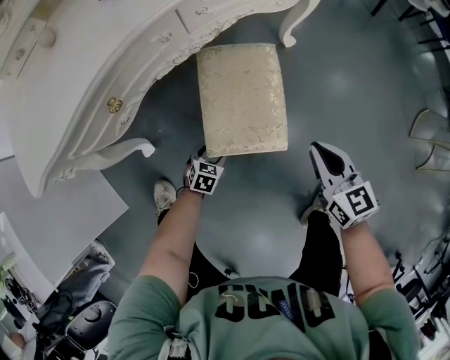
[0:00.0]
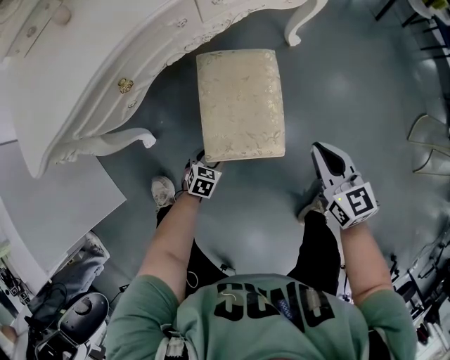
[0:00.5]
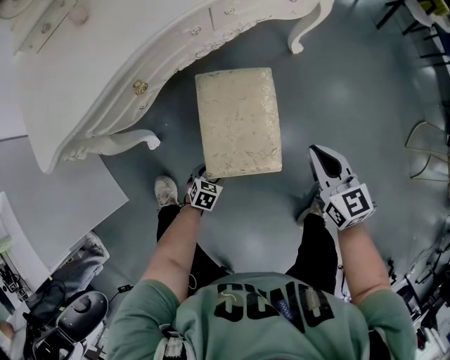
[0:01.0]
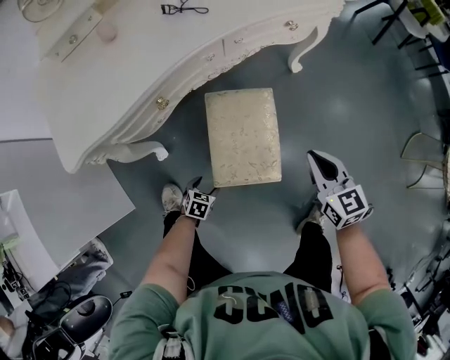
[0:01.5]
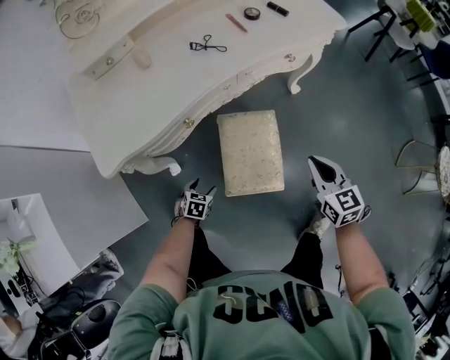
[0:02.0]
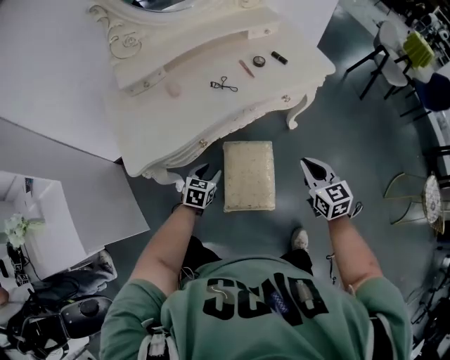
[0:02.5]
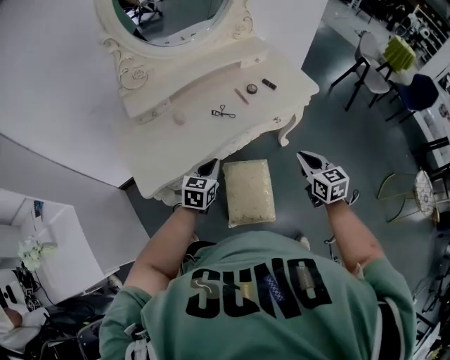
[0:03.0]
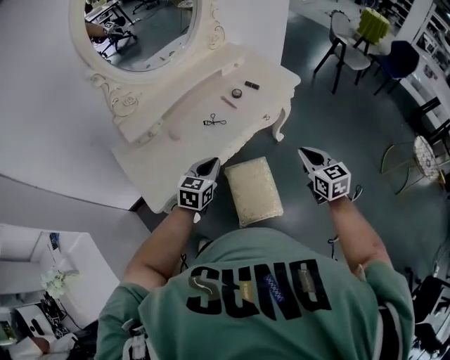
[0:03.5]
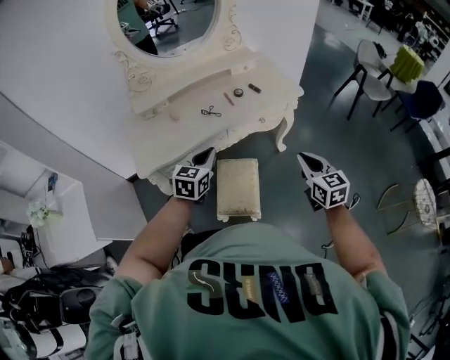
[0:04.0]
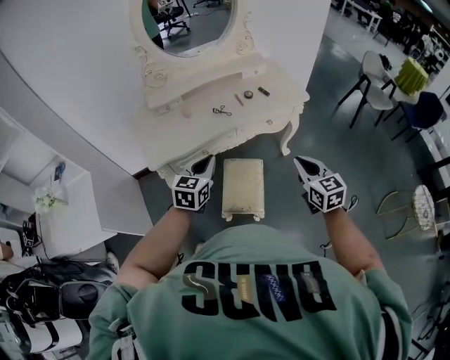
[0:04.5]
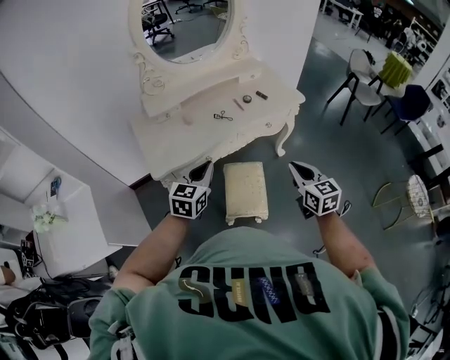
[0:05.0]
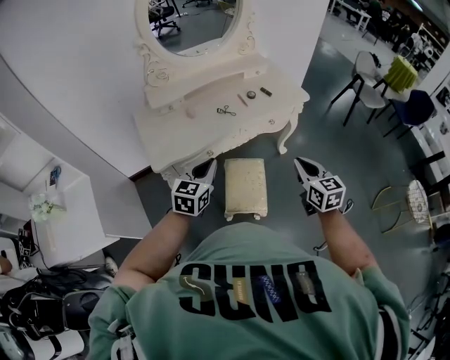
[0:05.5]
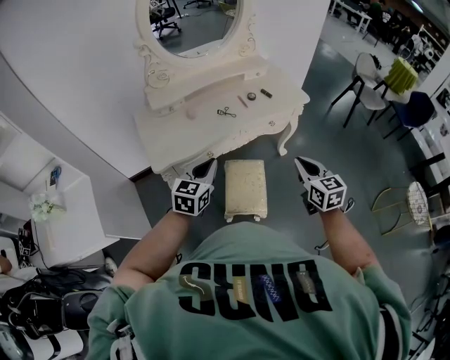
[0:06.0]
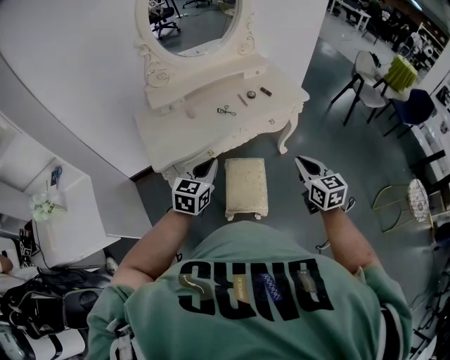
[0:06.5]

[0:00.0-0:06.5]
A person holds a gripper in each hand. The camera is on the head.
0:00.0 to 0:02.0: The right gripper is displaced upward and to the left by approximately 15 cm, while the left gripper travels to the left, upward and backward by about 20 cm.
0:02.0 to 0:04.5: The left gripper moves upward, approximately 60 cm, tilts its fingers approximately 40 degrees upward, and closes; the right gripper moves upward, roughly 30 cm.
0:04.5 to 0:06.5: The left gripper shifts by some 5 cm. The right gripper ends up approximately 5 cm from where it was.

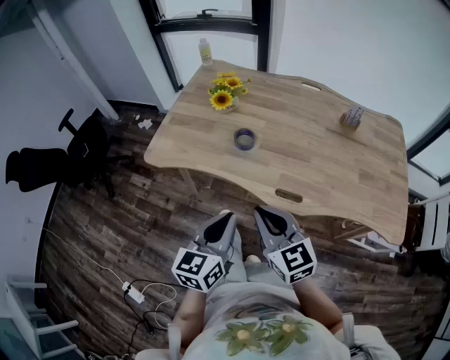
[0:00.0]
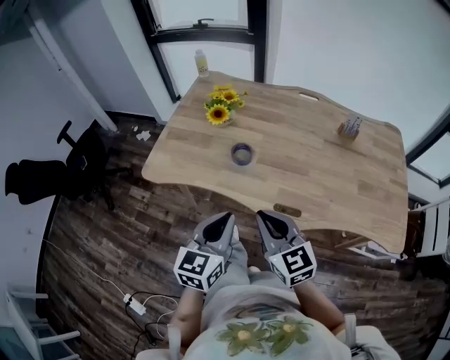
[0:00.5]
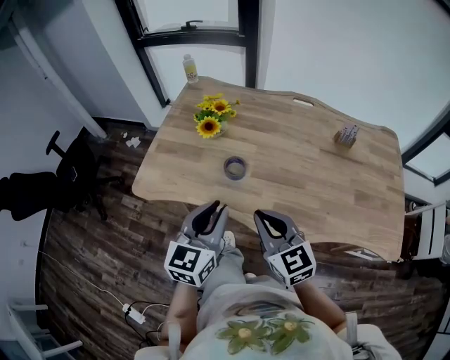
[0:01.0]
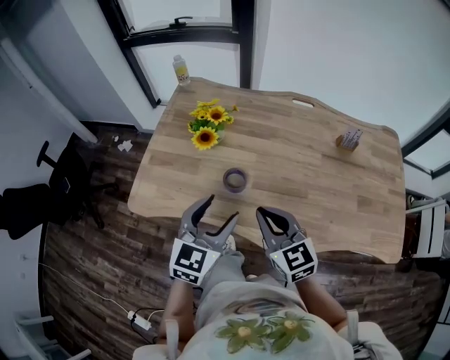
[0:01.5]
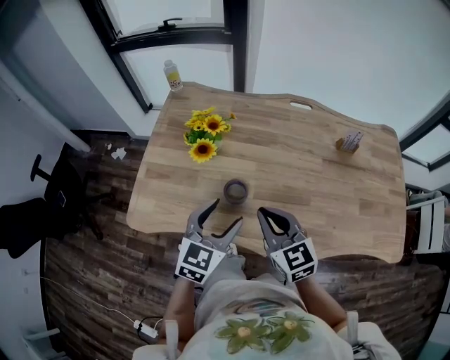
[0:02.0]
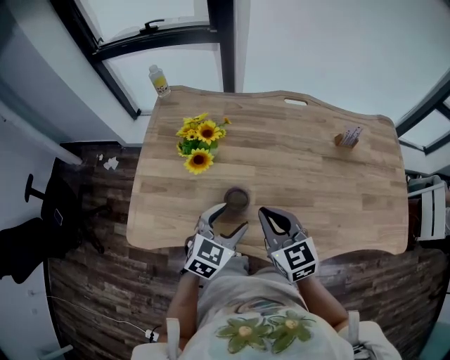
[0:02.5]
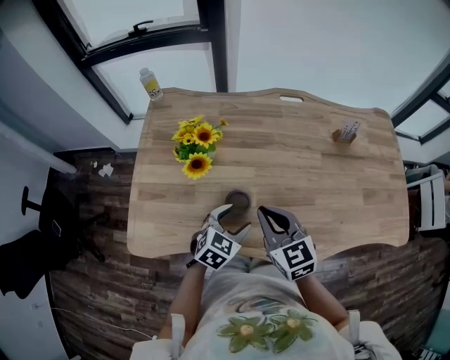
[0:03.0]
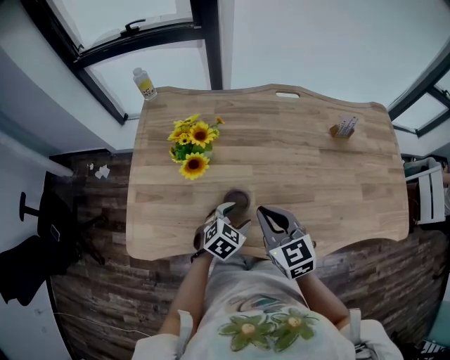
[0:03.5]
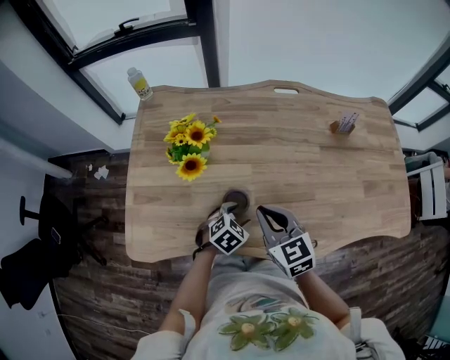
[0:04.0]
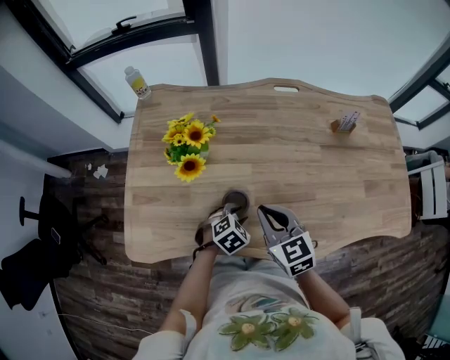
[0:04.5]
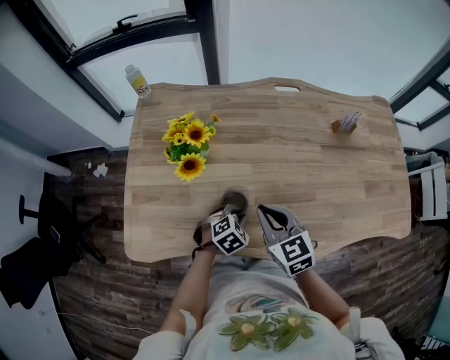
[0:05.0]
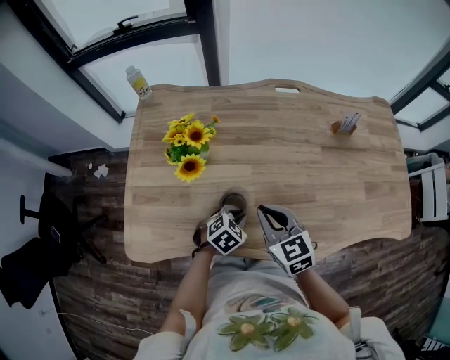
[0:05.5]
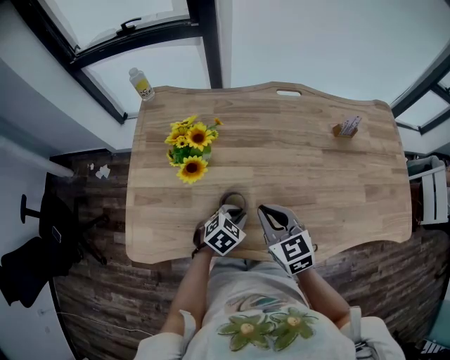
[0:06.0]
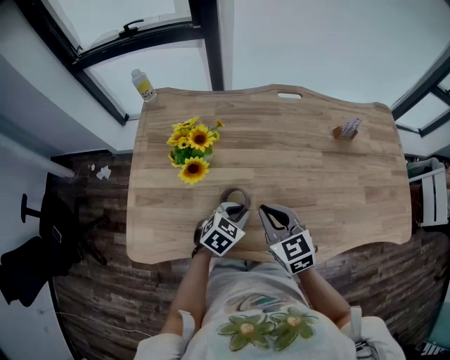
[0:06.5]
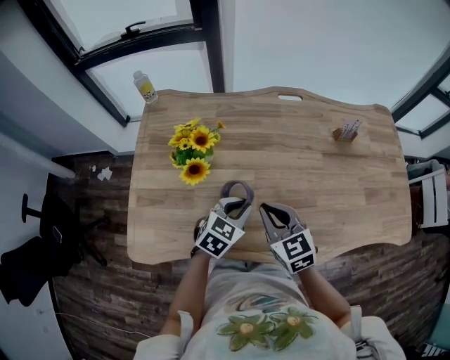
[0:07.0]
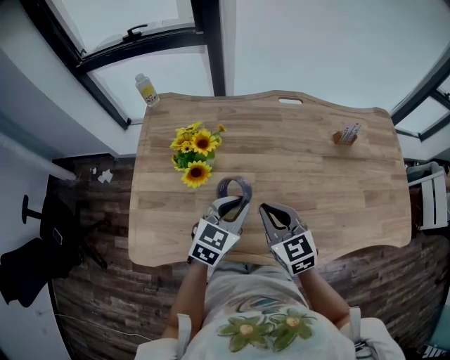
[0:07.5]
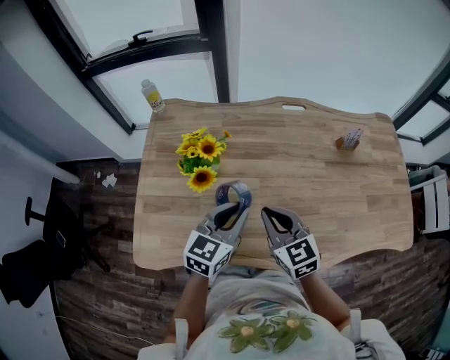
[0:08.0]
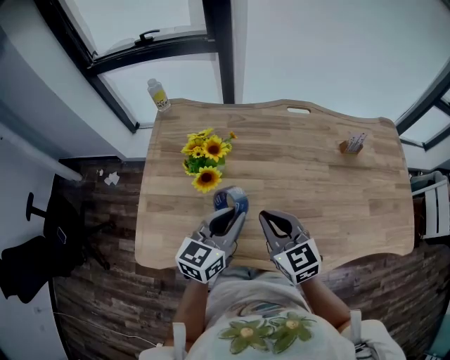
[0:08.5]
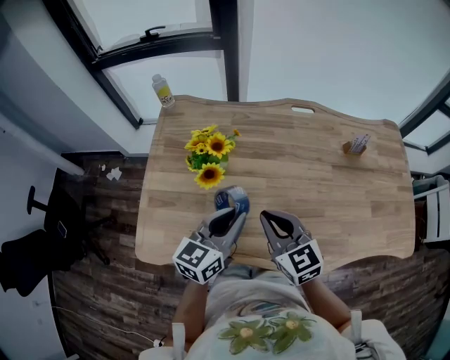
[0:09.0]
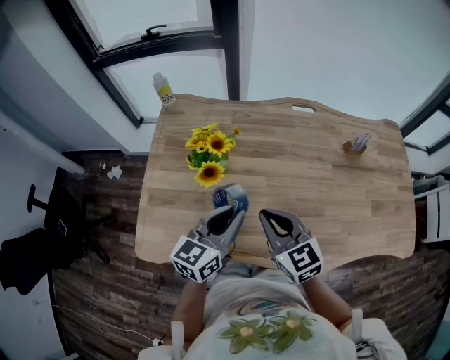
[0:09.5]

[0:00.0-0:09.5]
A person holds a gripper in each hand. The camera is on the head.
0:00.0 to 0:02.0: The two grippers go some 25 cm forward. The left gripper changes its angle by approximately 30 degrees, and opens its fingers.
0:02.0 to 0:04.0: The left gripper travels downward by roughly 25 cm, and angles its fingers downward, by some 30 degrees; the right gripper heads downward and forward, covering some 10 cm.
0:04.0 to 0:05.5: The left gripper closes its fingers.
0:05.5 to 0:07.5: The left gripper is displaced upward by roughly 15 cm, and changes its angle by about 30 degrees.
0:07.5 to 0:09.5: The left gripper moves upward and to the left, about 10 cm, and turns by approximately 30 degrees, while the right gripper ends up some 5 cm from where it was.

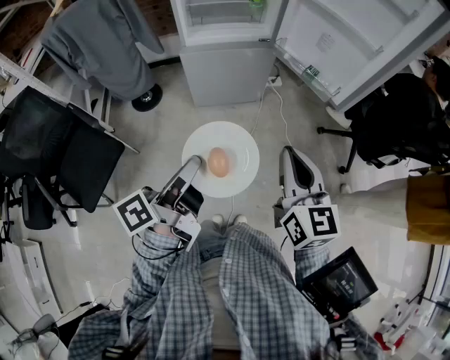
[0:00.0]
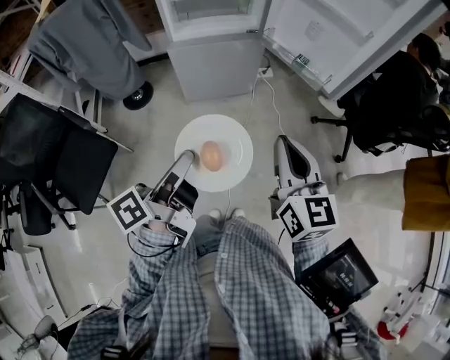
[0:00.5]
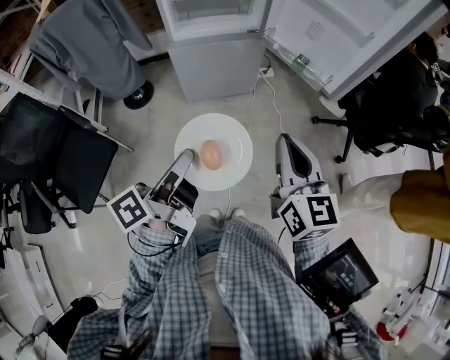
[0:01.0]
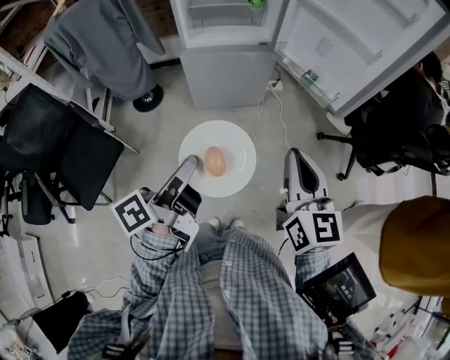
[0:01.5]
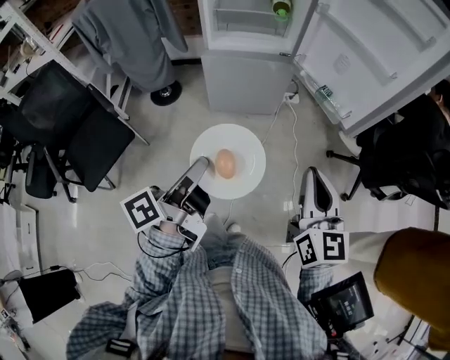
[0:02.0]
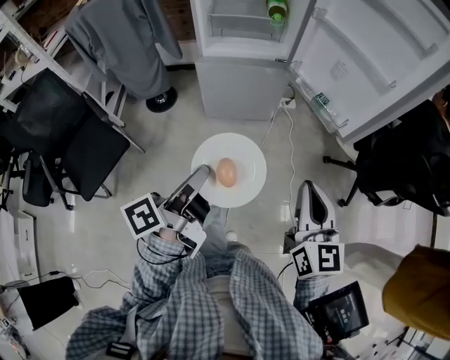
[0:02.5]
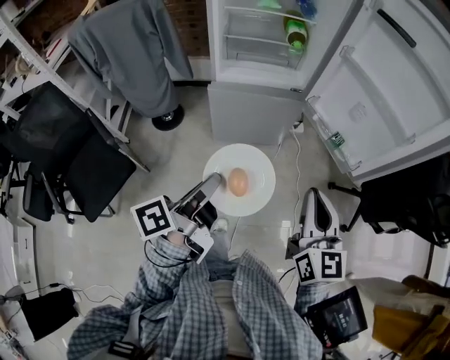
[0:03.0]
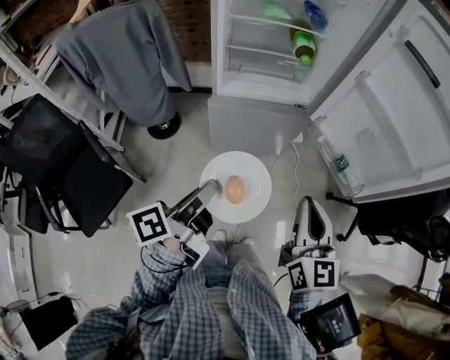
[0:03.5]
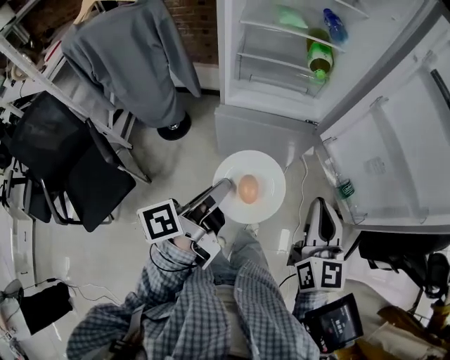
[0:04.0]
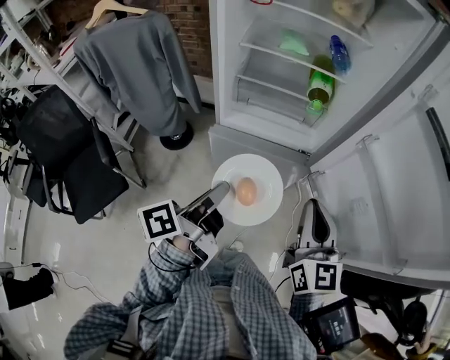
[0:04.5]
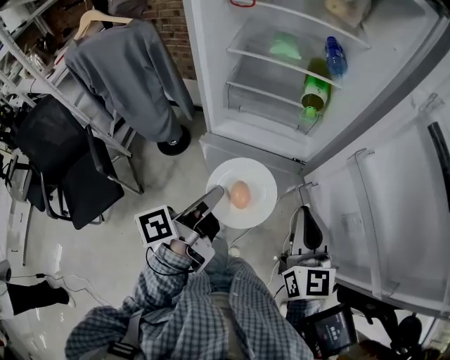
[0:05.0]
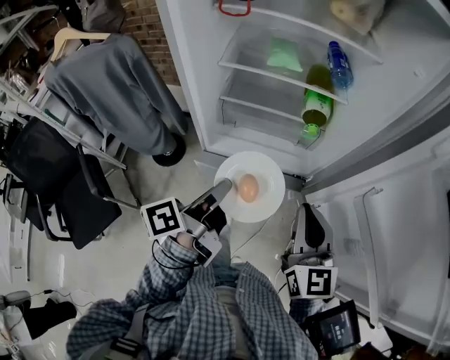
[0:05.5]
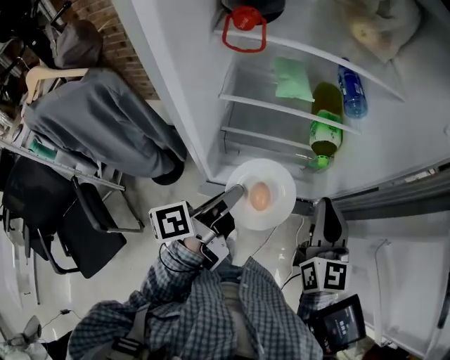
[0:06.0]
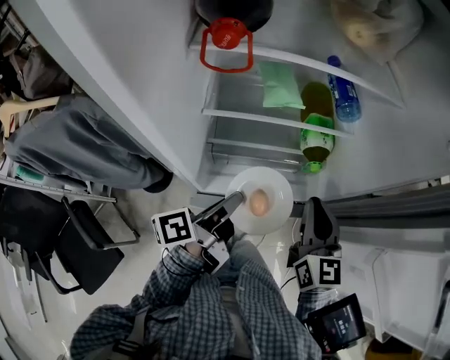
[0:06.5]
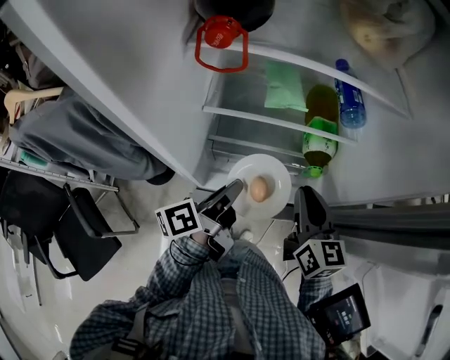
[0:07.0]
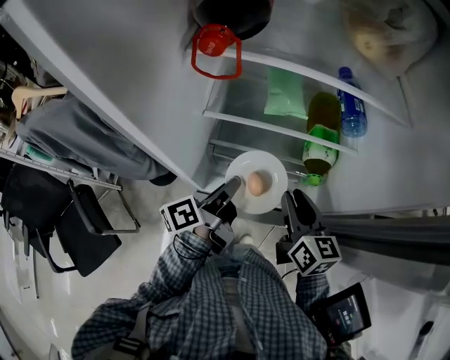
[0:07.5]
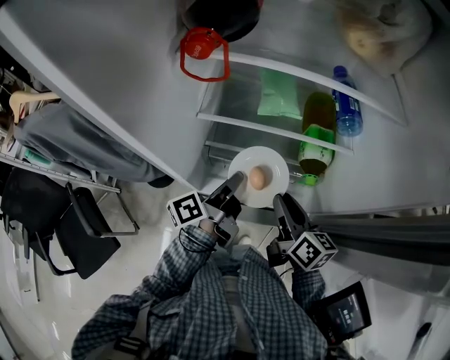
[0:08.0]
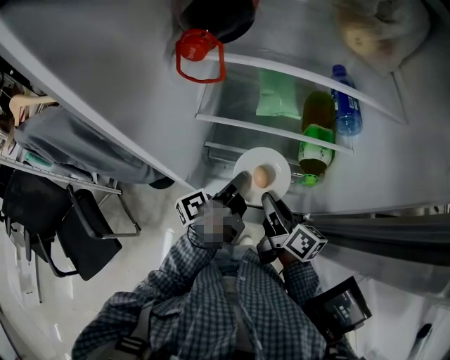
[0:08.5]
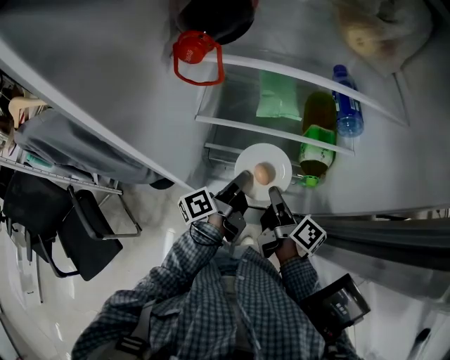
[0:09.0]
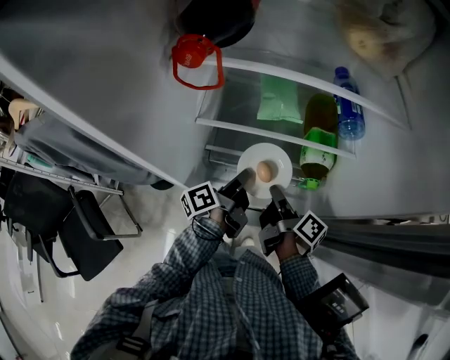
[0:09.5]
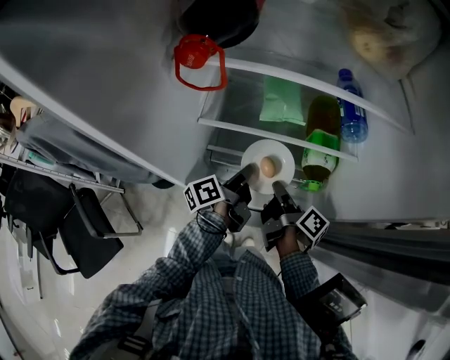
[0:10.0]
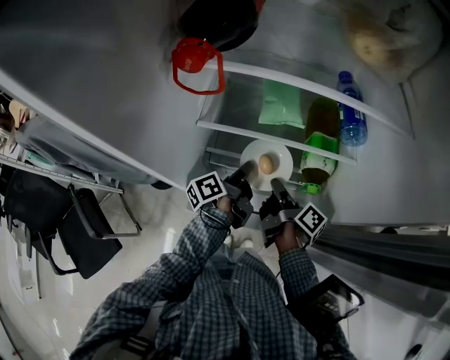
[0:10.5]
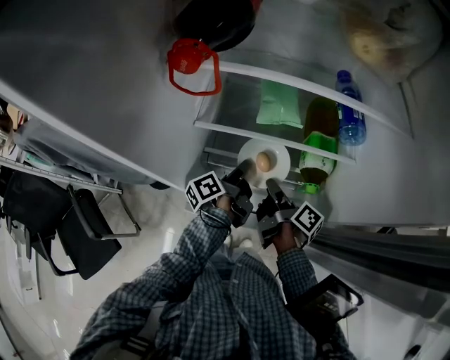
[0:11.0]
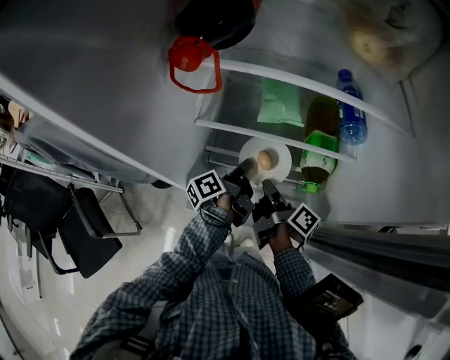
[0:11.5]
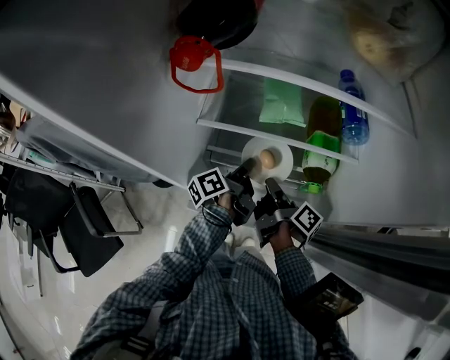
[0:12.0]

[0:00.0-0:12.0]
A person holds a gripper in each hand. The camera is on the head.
0:00.0 to 0:02.0: The right gripper moves some 10 cm.
0:02.0 to 0:04.0: The right gripper moves roughly 30 cm.
0:04.0 to 0:06.0: The right gripper shifts by about 35 cm.
0:06.0 to 0:08.0: The right gripper goes approximately 10 cm downward, changes its angle by approximately 50 degrees, and opens its fingers.
0:08.0 to 0:10.0: The right gripper shifts roughly 5 cm downward, rolls clockwise, seen from behind, by about 40 degrees, and closes up.
